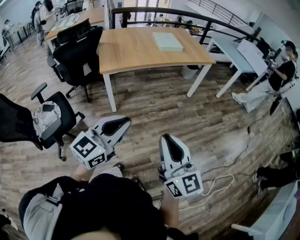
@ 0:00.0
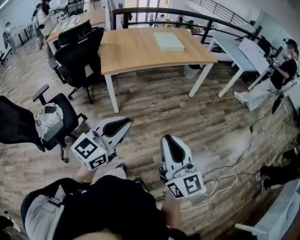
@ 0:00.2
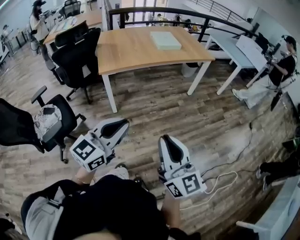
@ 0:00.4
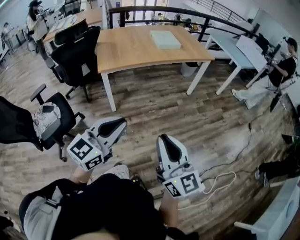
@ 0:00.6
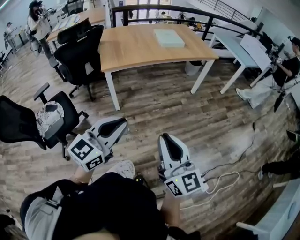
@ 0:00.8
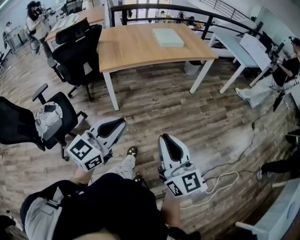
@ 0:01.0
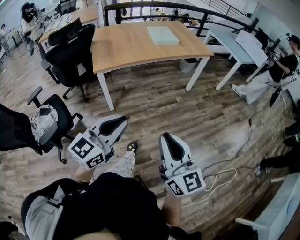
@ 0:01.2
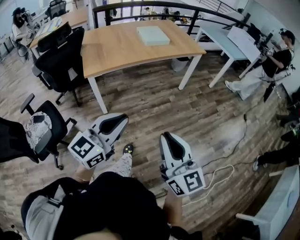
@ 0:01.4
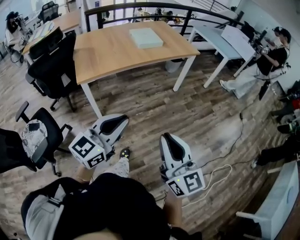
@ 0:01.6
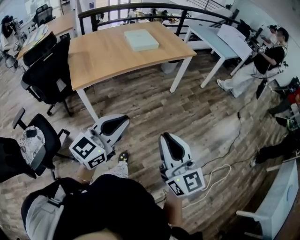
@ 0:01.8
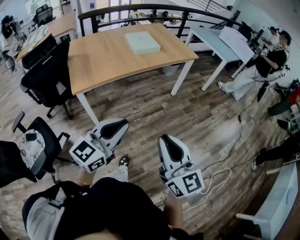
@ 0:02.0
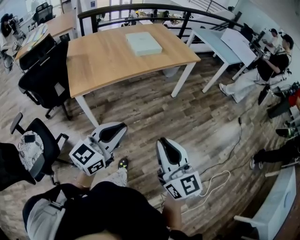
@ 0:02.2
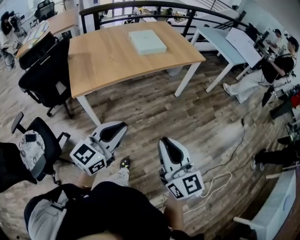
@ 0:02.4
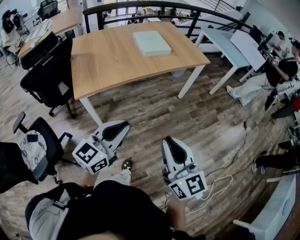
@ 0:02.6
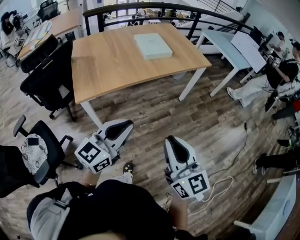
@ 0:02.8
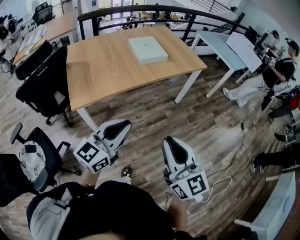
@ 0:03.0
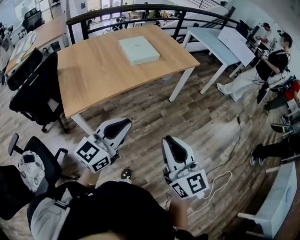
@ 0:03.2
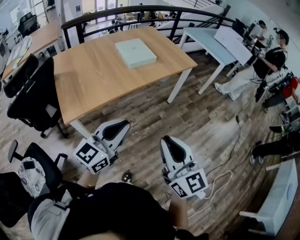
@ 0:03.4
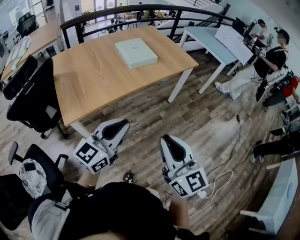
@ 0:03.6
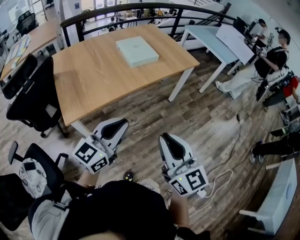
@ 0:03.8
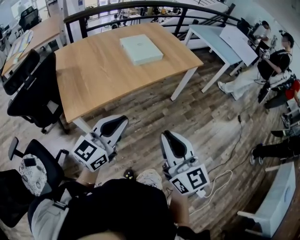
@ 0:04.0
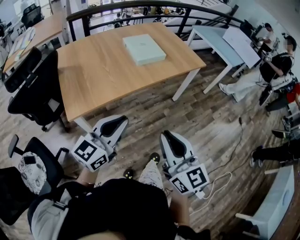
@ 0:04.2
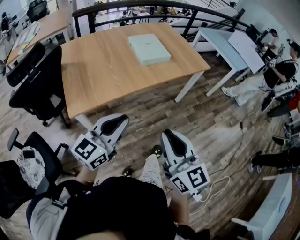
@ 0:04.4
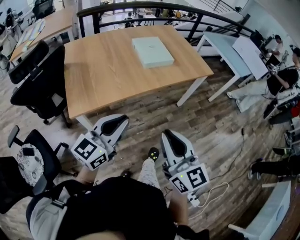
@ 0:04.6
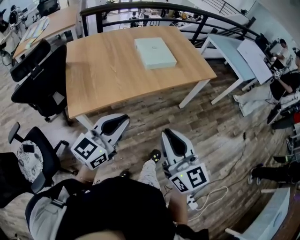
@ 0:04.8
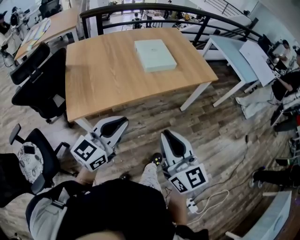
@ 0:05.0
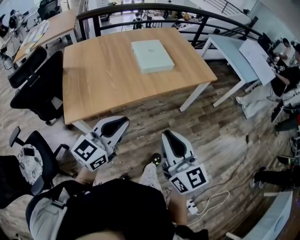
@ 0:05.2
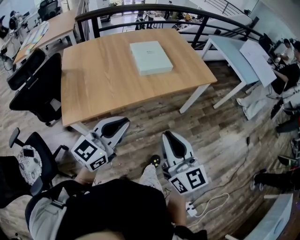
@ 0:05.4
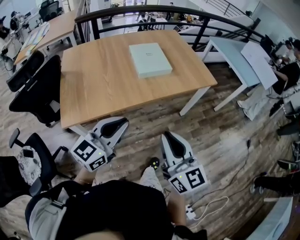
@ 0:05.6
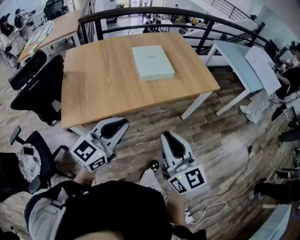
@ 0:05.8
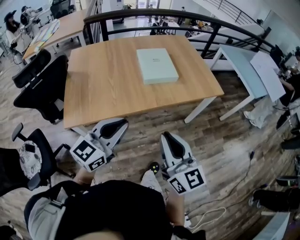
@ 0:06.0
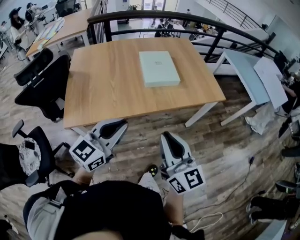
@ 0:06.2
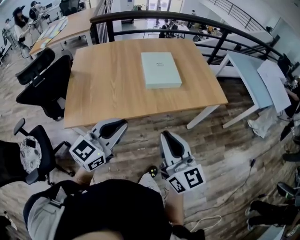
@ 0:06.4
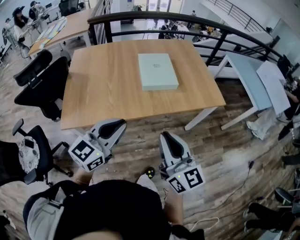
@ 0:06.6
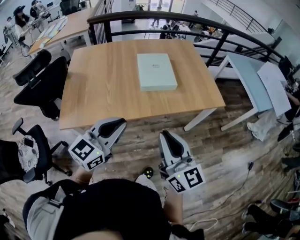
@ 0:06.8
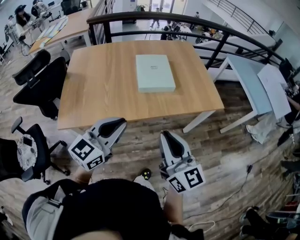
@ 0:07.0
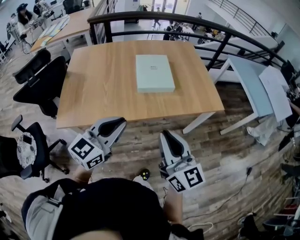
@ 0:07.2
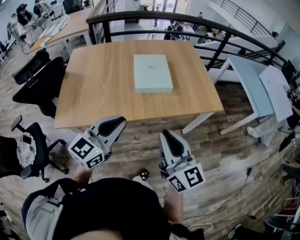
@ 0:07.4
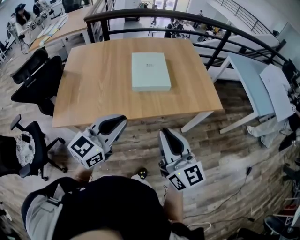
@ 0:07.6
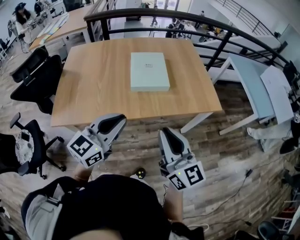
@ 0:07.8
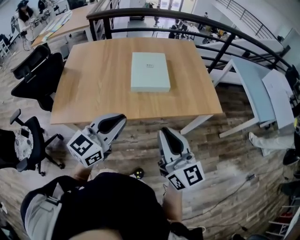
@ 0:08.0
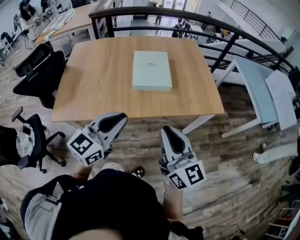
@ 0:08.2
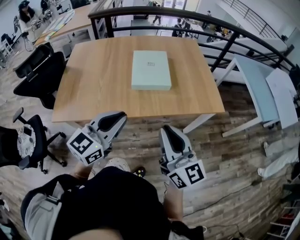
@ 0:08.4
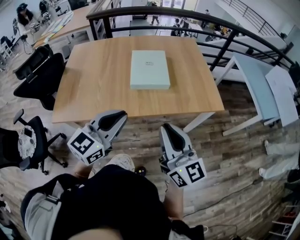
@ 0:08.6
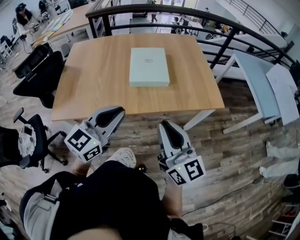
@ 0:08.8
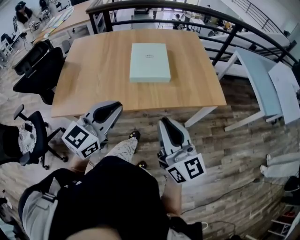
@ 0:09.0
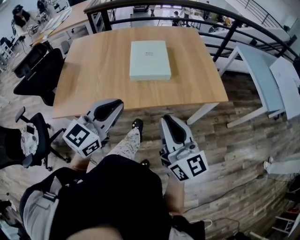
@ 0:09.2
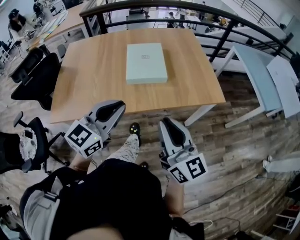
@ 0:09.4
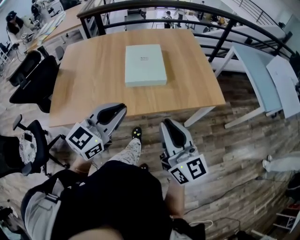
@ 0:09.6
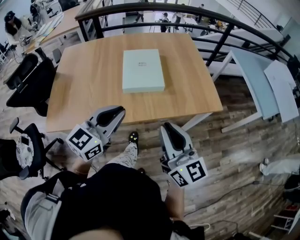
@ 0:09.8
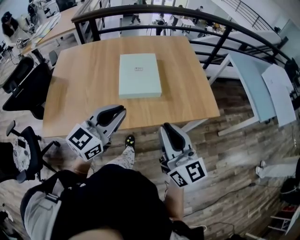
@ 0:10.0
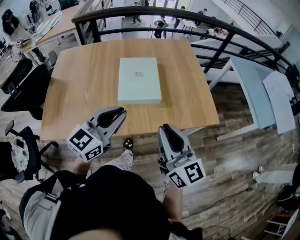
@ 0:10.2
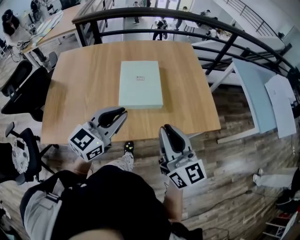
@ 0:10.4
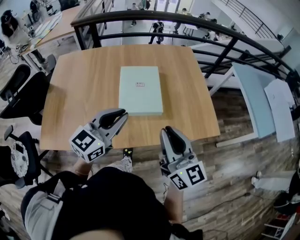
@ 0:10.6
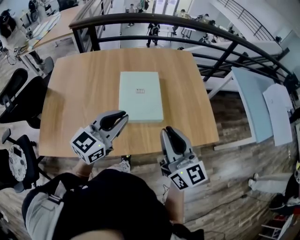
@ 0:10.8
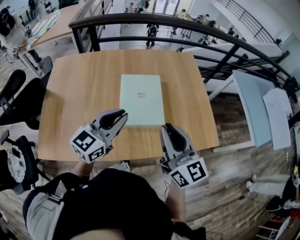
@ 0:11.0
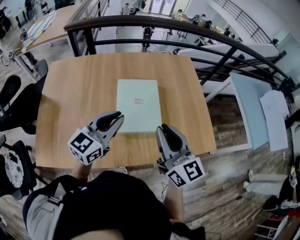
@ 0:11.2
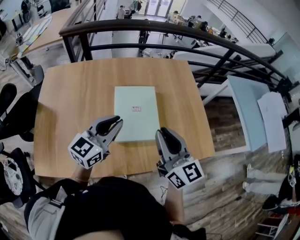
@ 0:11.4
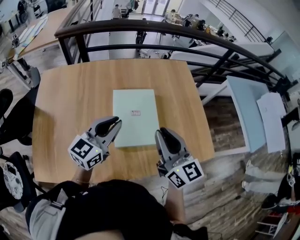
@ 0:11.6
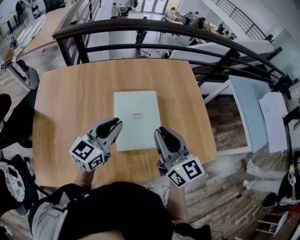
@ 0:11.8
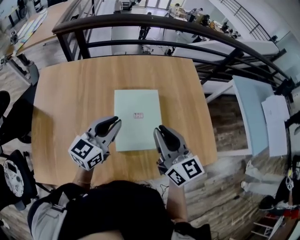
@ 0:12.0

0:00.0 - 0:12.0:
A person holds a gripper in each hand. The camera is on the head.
0:00.0 - 0:01.6: The left gripper travels forward and to the right by about 15 cm; the right gripper shifts roughly 10 cm forward.
0:01.6 - 0:03.0: Both grippers move forward, about 20 cm.
0:03.0 - 0:04.4: Both grippers travel together forward and to the left, approximately 10 cm.
0:04.4 - 0:06.0: Both grippers travel together forward and to the right, roughly 20 cm.
0:06.0 - 0:07.6: The right gripper heads forward and to the right, covering roughly 15 cm. The left gripper shifts approximately 15 cm to the right and forward.
0:07.6 - 0:09.0: The right gripper shifts by approximately 5 cm.
0:09.0 - 0:10.4: Both grippers move forward, approximately 15 cm.
0:10.4 - 0:12.0: The grippers both shift forward by some 25 cm.

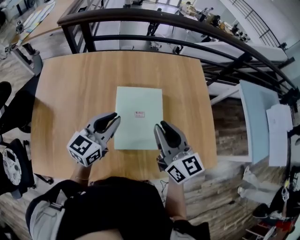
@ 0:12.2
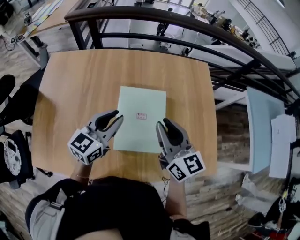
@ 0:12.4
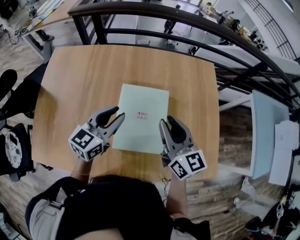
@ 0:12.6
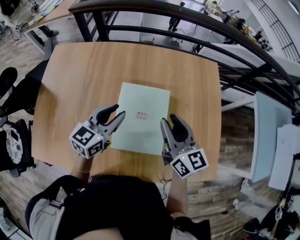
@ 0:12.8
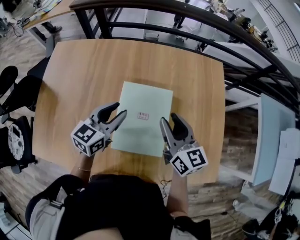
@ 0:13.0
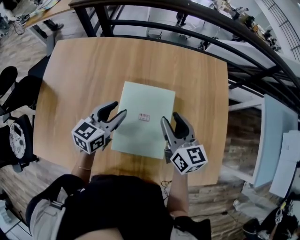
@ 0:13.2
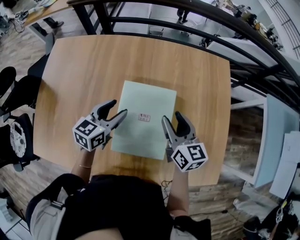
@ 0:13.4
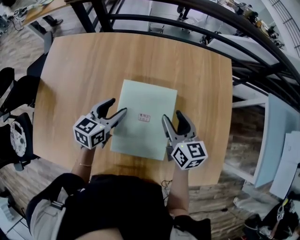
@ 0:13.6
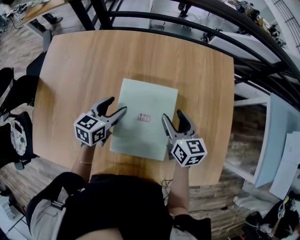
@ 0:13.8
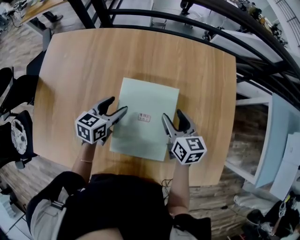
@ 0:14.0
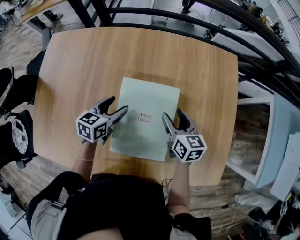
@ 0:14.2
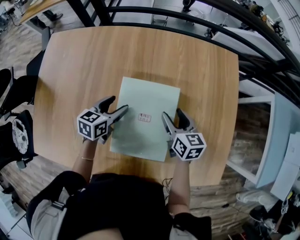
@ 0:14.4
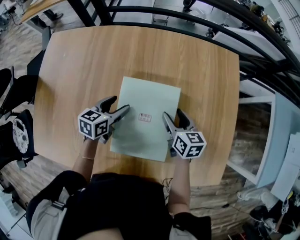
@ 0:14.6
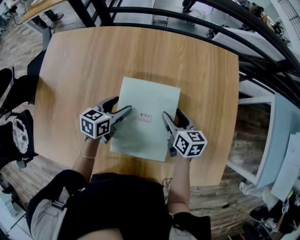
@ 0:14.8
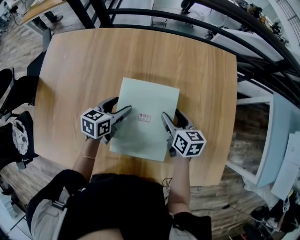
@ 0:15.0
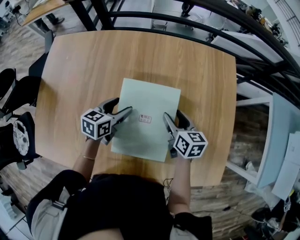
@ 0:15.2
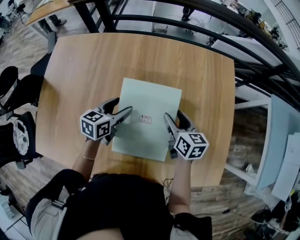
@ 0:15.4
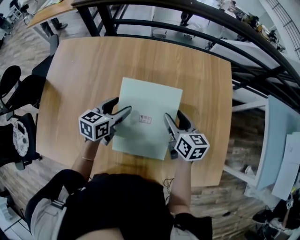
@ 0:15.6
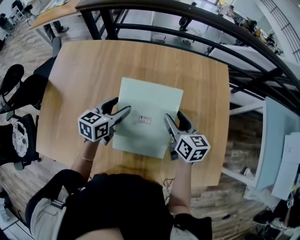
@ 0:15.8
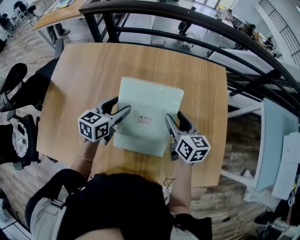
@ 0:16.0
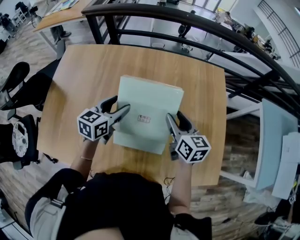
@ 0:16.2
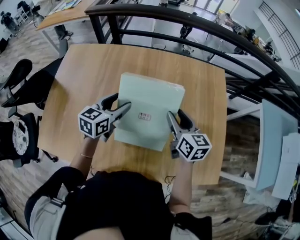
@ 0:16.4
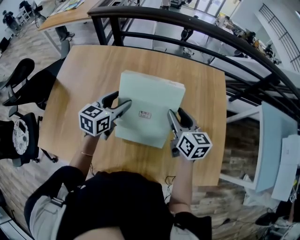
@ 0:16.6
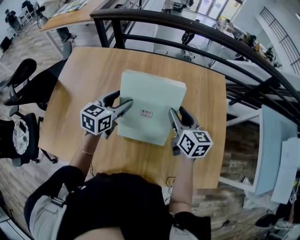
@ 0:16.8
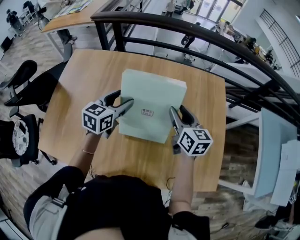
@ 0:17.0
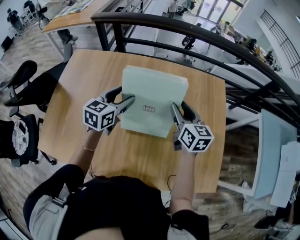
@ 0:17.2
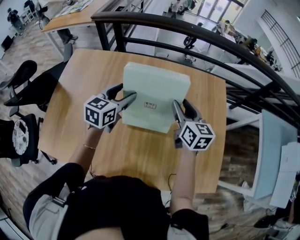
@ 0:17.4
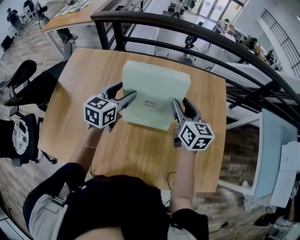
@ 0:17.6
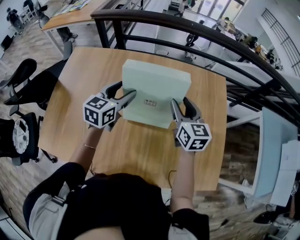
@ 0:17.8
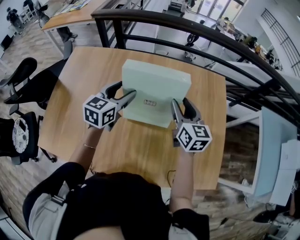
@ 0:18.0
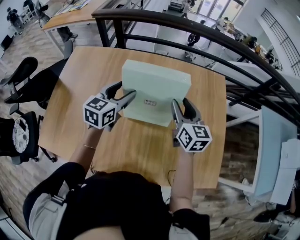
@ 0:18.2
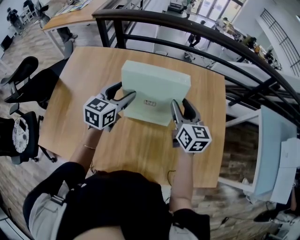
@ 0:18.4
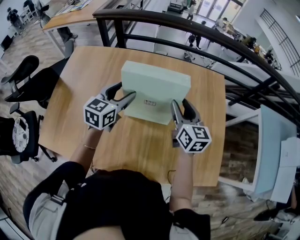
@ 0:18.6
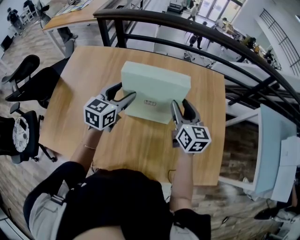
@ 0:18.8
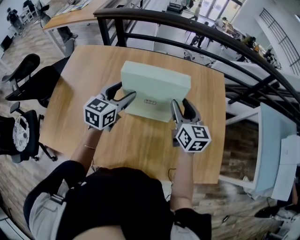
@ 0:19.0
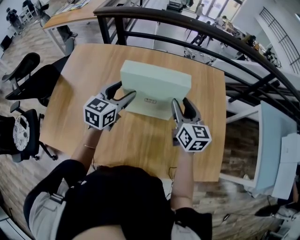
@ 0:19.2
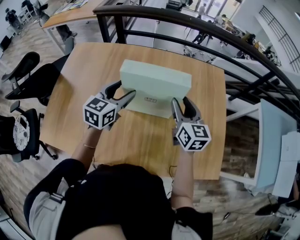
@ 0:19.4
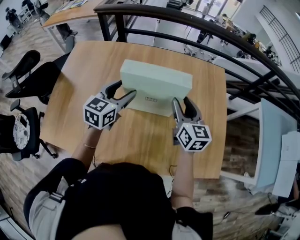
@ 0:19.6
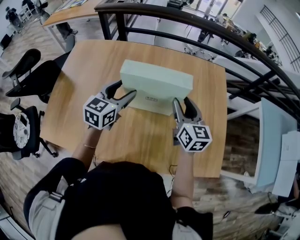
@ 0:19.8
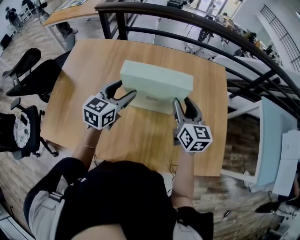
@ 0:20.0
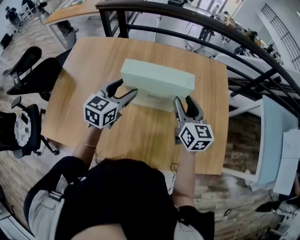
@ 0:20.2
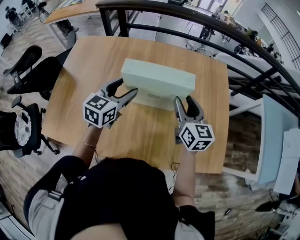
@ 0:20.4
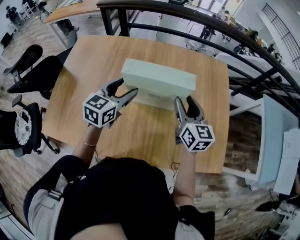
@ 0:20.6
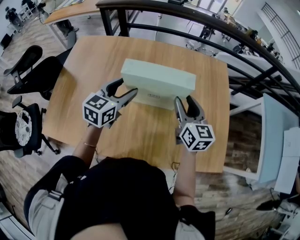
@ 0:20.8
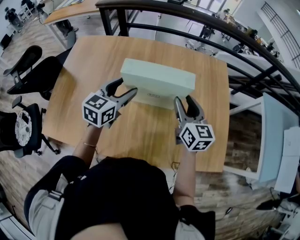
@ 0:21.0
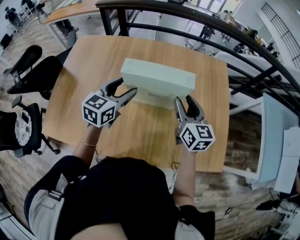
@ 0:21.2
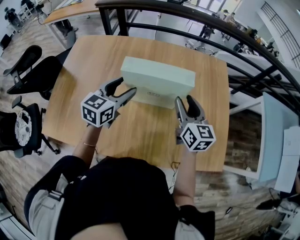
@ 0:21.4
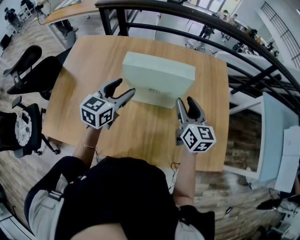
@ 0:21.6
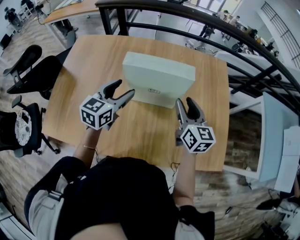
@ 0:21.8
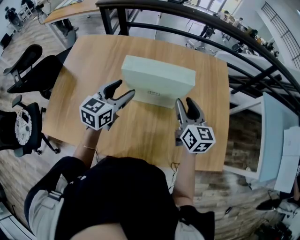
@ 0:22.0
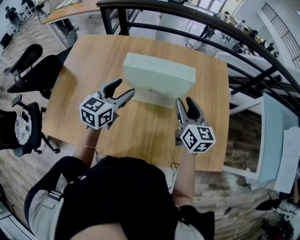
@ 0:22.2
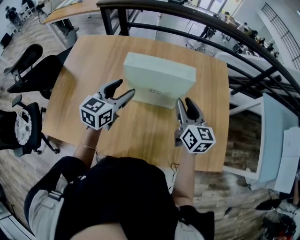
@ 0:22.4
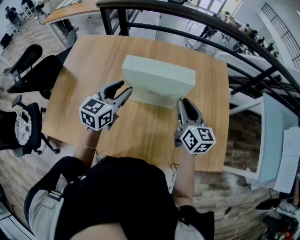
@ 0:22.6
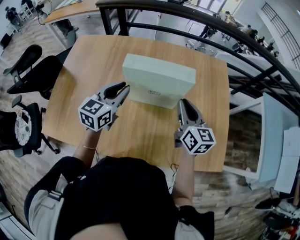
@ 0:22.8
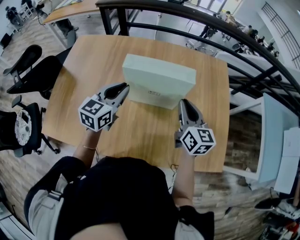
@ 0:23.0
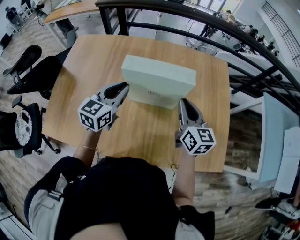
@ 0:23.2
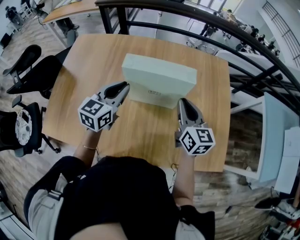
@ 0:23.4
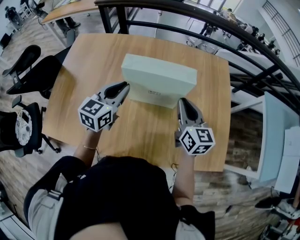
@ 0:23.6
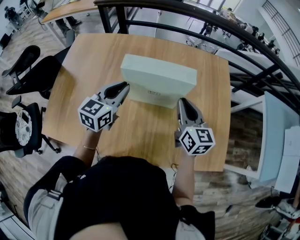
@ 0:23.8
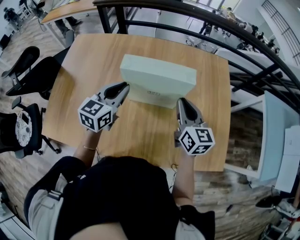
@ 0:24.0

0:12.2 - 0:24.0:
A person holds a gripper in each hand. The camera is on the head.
0:12.2 - 0:13.6: Both grippers move downward and forward, roughly 15 cm. The left gripper turns by about 20 degrees, and opens up. Meanwhile the right gripper opens up.
0:13.6 - 0:15.2: Both grippers move downward, roughly 5 cm.
0:15.2 - 0:16.6: Both grippers travel together upward, some 15 cm.
0:16.6 - 0:18.2: The right gripper changes place by approximately 5 cm.
0:18.2 - 0:19.6: Both grippers travel together backward, about 5 cm.
0:19.6 - 0:21.0: The grippers move only a little.
0:21.0 - 0:22.6: The right gripper closes. Meanwhile the left gripper closes up.
0:22.6 - 0:24.0: The left gripper closes its fingers.
